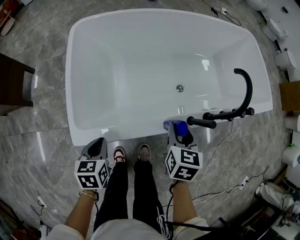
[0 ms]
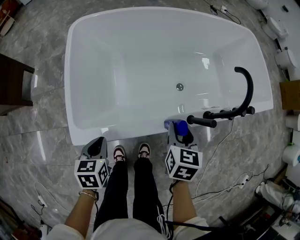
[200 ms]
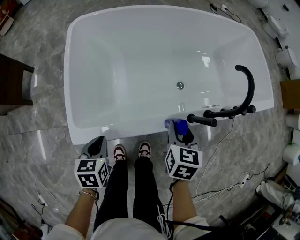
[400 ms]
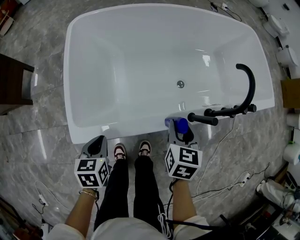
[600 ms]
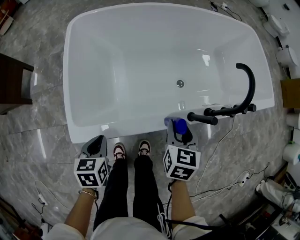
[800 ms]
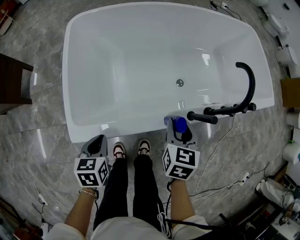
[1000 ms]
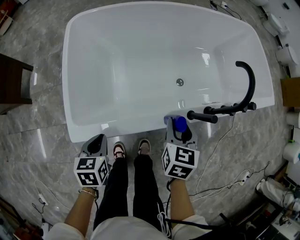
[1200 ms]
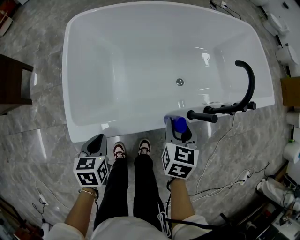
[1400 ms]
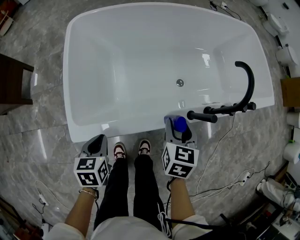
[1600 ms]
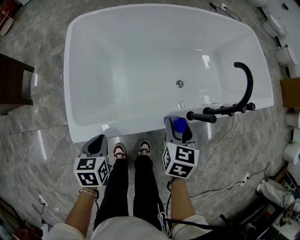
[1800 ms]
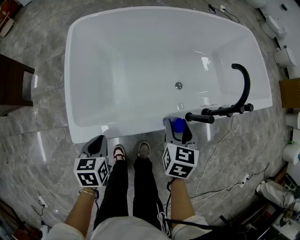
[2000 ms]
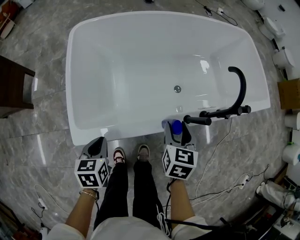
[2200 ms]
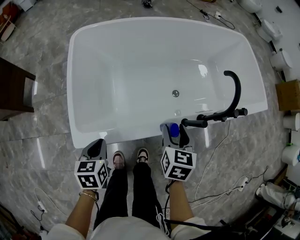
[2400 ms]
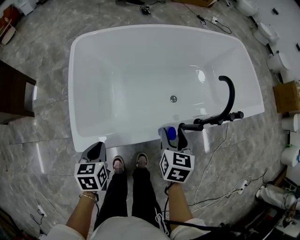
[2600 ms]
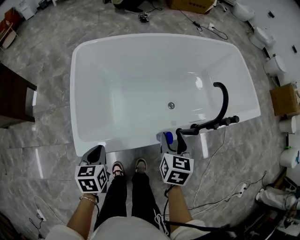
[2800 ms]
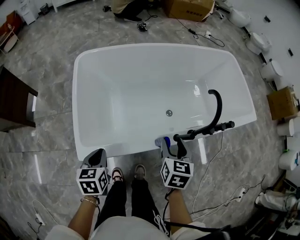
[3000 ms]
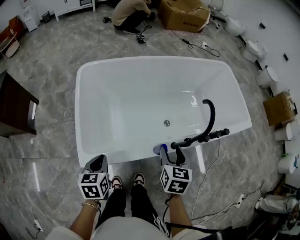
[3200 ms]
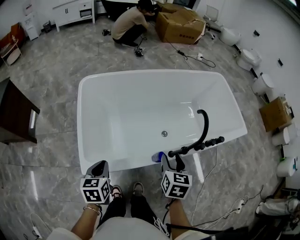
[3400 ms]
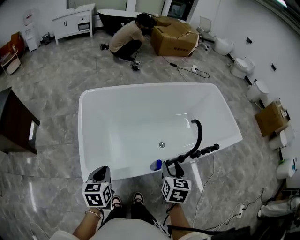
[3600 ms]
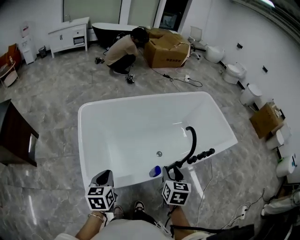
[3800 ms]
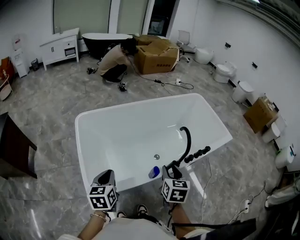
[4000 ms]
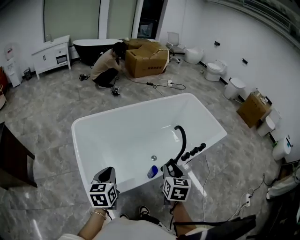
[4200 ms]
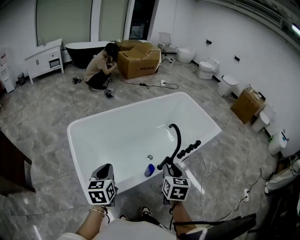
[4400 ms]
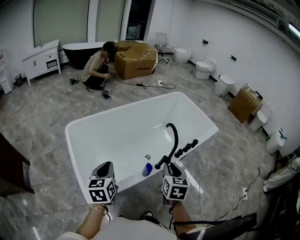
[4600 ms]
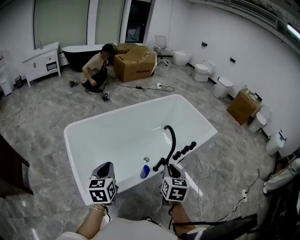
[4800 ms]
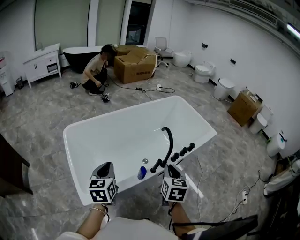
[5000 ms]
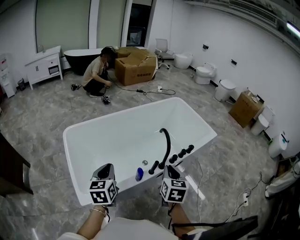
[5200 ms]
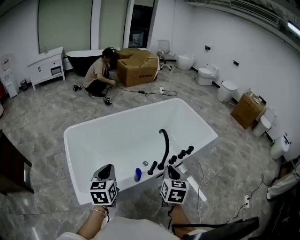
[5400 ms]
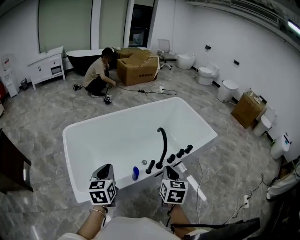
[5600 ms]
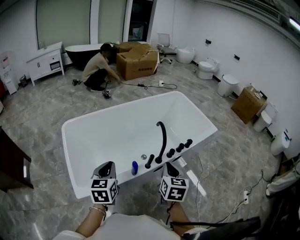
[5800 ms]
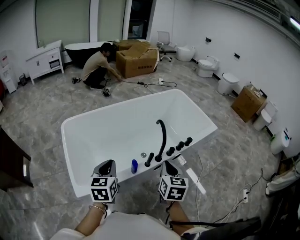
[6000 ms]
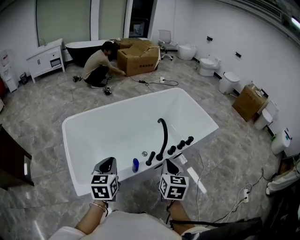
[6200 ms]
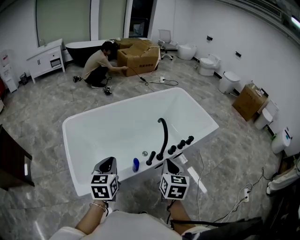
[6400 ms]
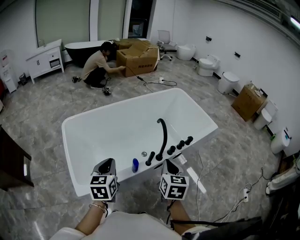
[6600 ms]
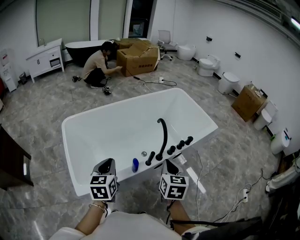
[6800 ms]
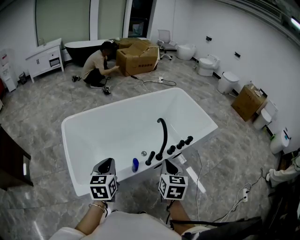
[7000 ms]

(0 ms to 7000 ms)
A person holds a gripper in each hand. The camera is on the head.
0 ms - 1400 ms: Both grippers stay about where they are.
1400 ms - 2800 ms: The grippers both shift upward by approximately 5 cm.
2800 ms - 4200 ms: The left gripper heads upward and forward, covering roughly 20 cm, and turns by approximately 20 degrees, while the right gripper goes some 15 cm upward, and closes up.
4200 ms - 5600 ms: The grippers both shift to the right by some 10 cm. The right gripper closes up.
5600 ms - 7000 ms: There are only small adjustments of the grippers.

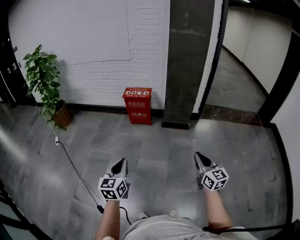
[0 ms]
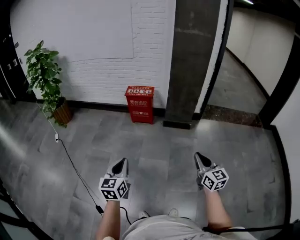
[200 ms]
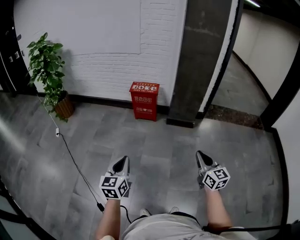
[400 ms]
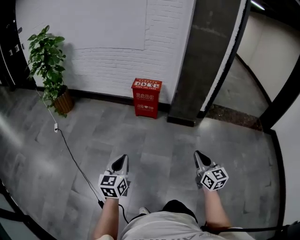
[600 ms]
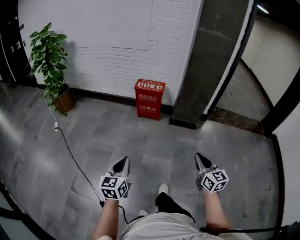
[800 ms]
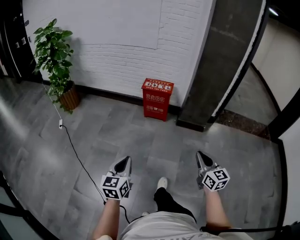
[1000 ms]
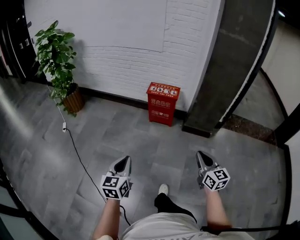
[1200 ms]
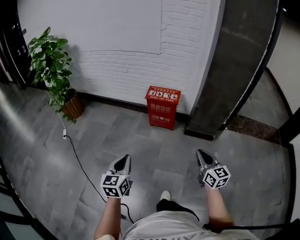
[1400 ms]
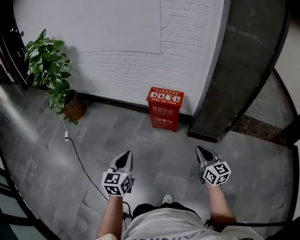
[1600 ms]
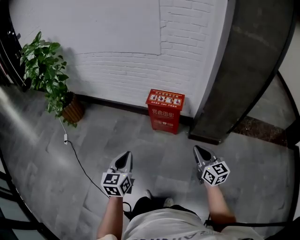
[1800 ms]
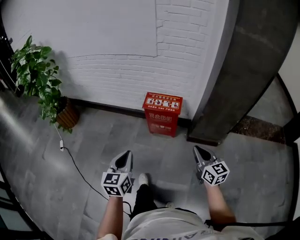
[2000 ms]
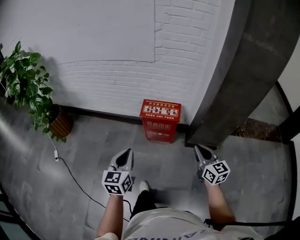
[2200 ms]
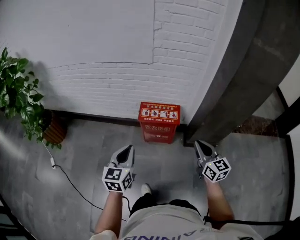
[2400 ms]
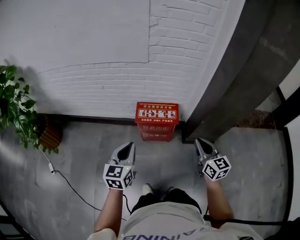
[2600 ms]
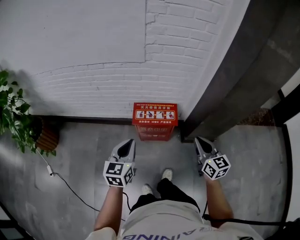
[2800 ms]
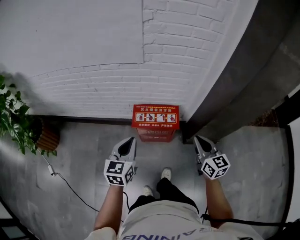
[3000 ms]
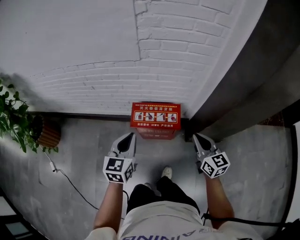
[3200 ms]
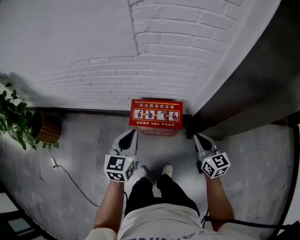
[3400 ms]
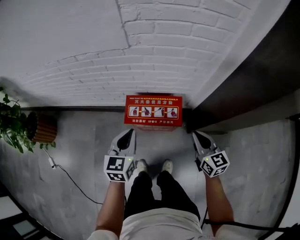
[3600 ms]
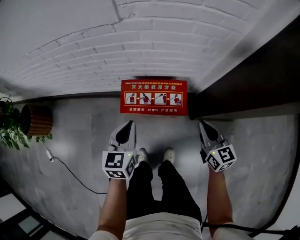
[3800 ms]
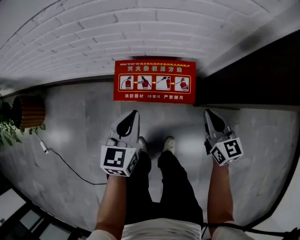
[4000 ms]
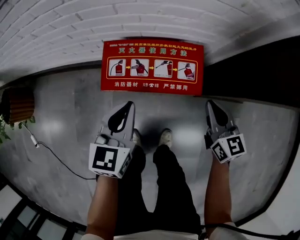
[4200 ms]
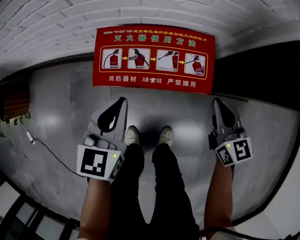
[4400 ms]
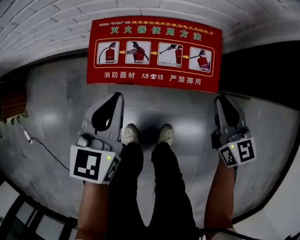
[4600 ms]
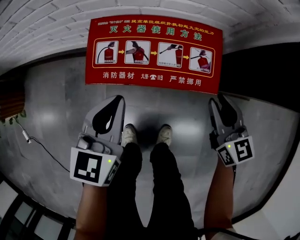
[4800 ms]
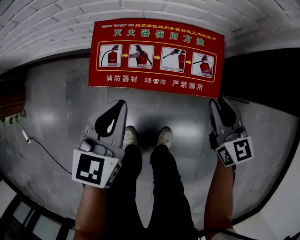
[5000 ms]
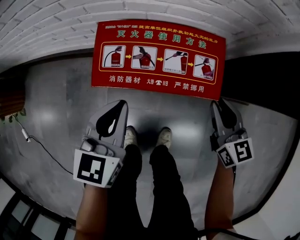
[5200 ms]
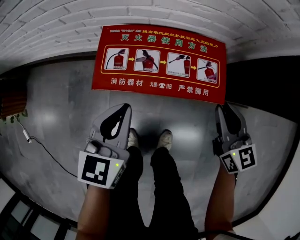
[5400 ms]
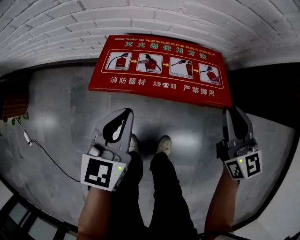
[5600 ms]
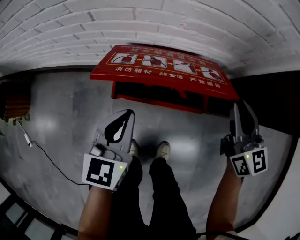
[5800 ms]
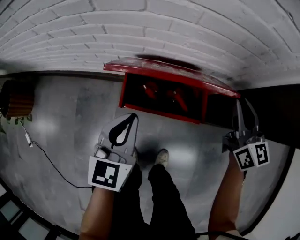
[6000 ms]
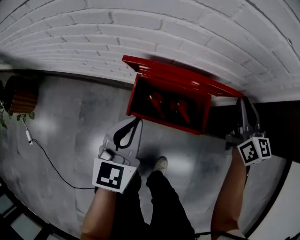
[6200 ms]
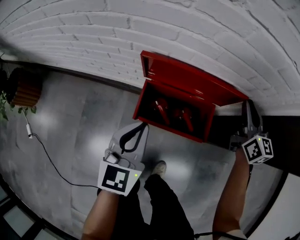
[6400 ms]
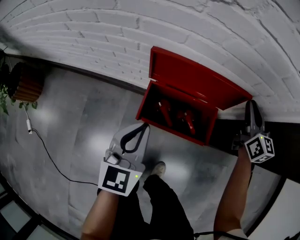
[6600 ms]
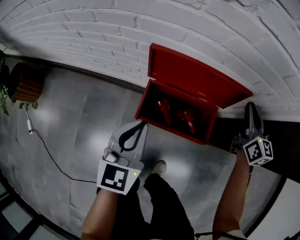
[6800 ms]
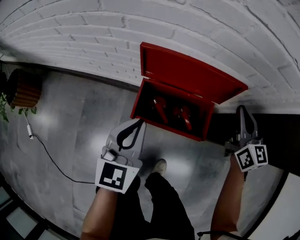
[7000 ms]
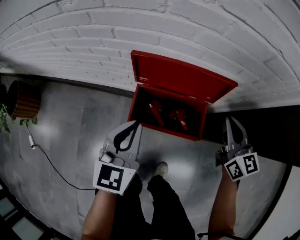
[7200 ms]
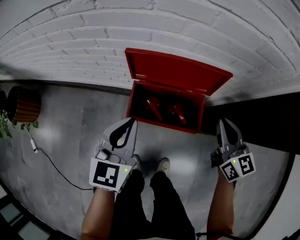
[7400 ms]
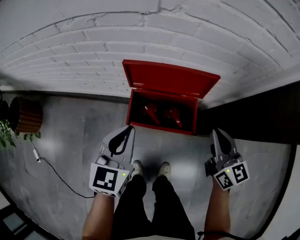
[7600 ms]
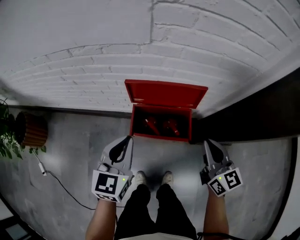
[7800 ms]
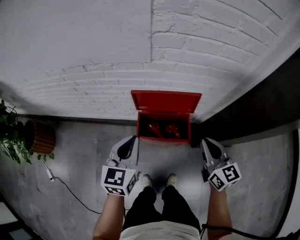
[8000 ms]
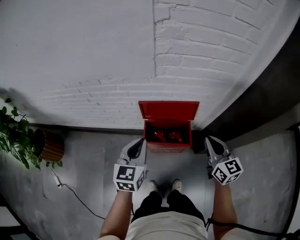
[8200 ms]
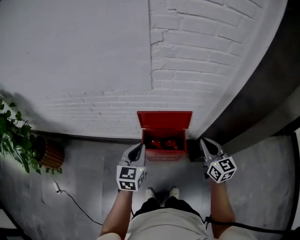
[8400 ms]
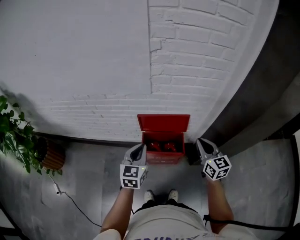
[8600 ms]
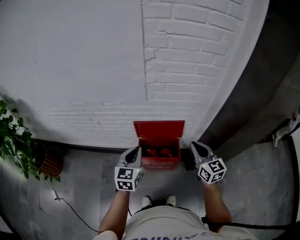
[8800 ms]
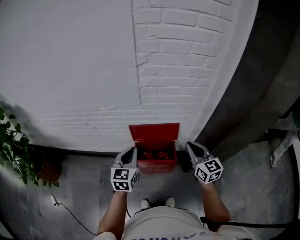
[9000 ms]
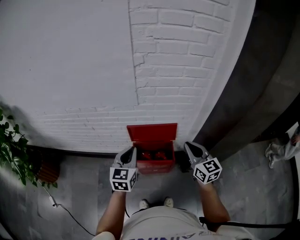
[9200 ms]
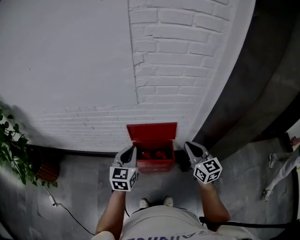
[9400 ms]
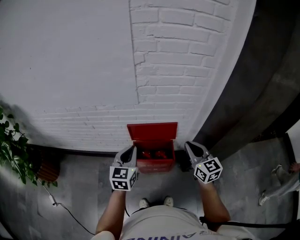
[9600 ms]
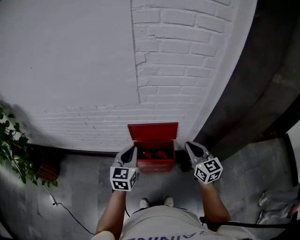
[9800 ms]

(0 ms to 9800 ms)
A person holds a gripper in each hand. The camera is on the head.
0 ms - 1400 ms: The two grippers go approximately 35 cm forward and to the left.
1400 ms - 2800 ms: The pair of grippers is taken forward, roughly 50 cm.
2800 ms - 4200 ms: The two grippers go roughly 35 cm downward and forward.
4200 ms - 5600 ms: The right gripper goes downward and returns, roughly 5 cm each way.
5600 ms - 7000 ms: The left gripper heads upward and forward, covering roughly 15 cm; the right gripper goes roughly 20 cm forward and upward.
7000 ms - 8400 ms: The right gripper shifts approximately 25 cm upward and backward, while the left gripper moves upward, some 20 cm.
8400 ms - 9800 ms: The left gripper shifts by about 5 cm.

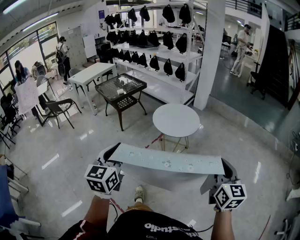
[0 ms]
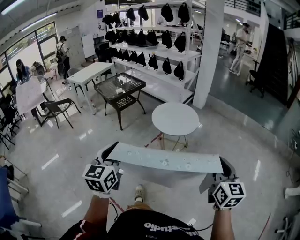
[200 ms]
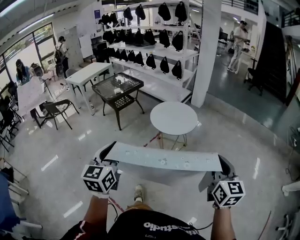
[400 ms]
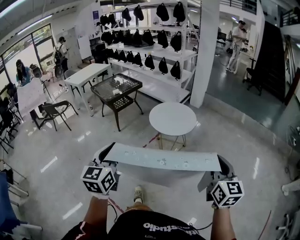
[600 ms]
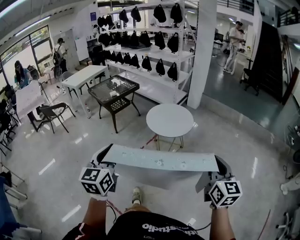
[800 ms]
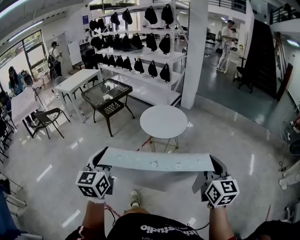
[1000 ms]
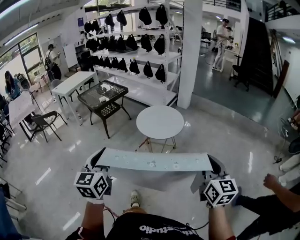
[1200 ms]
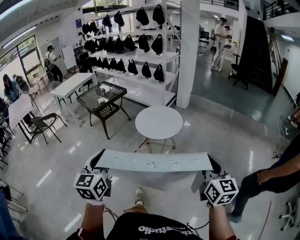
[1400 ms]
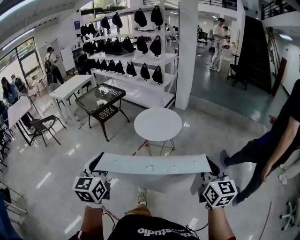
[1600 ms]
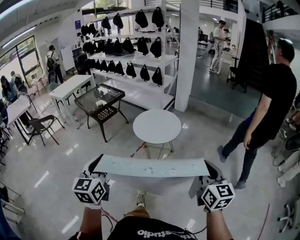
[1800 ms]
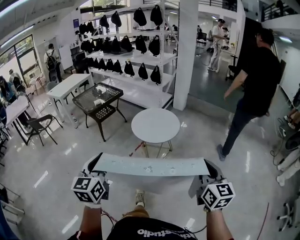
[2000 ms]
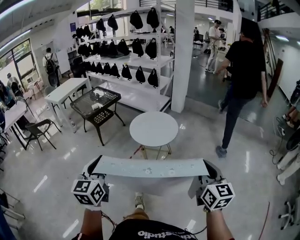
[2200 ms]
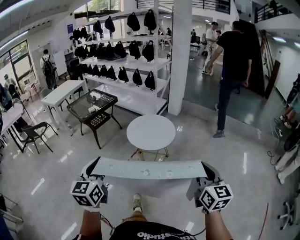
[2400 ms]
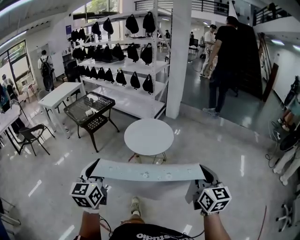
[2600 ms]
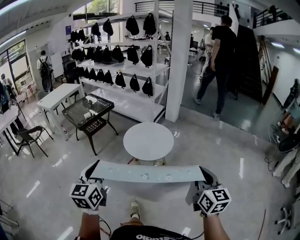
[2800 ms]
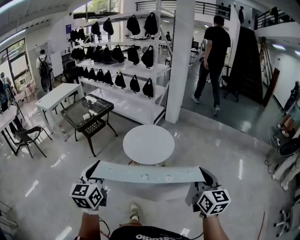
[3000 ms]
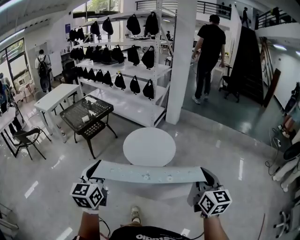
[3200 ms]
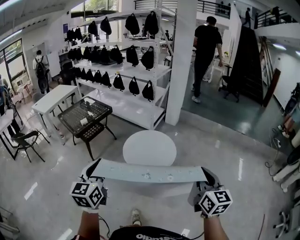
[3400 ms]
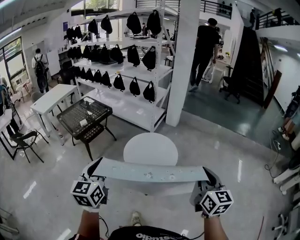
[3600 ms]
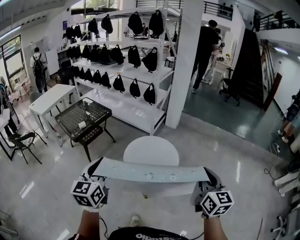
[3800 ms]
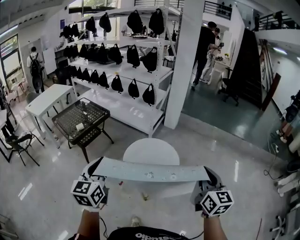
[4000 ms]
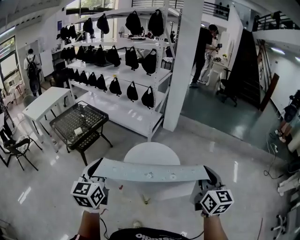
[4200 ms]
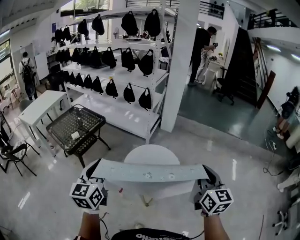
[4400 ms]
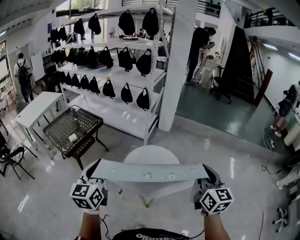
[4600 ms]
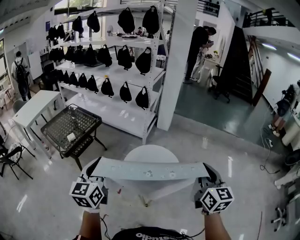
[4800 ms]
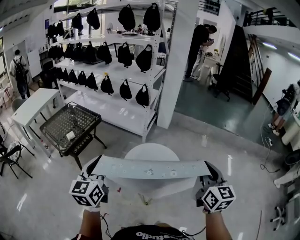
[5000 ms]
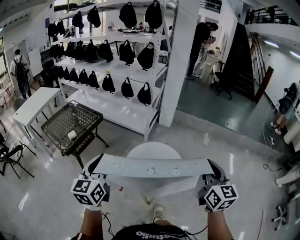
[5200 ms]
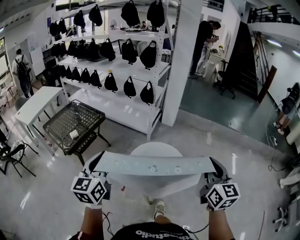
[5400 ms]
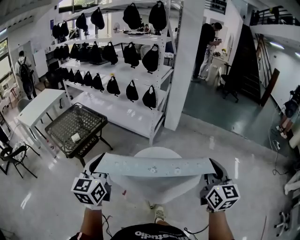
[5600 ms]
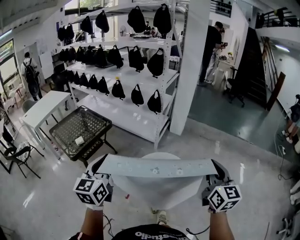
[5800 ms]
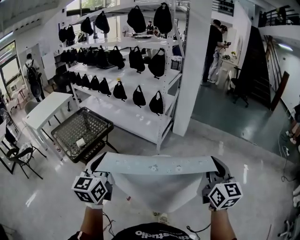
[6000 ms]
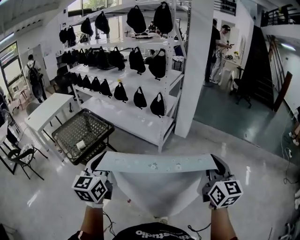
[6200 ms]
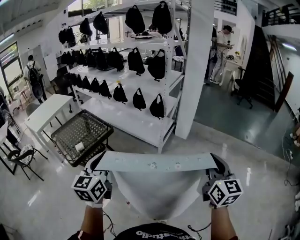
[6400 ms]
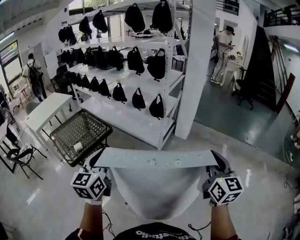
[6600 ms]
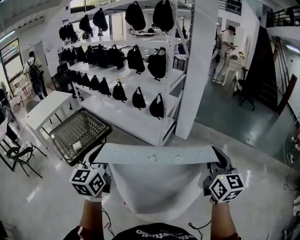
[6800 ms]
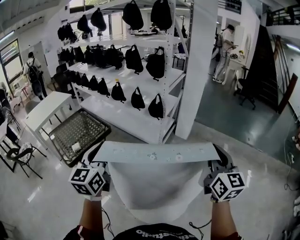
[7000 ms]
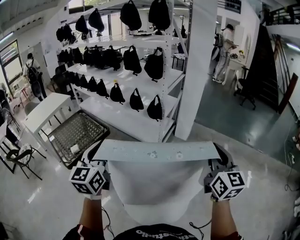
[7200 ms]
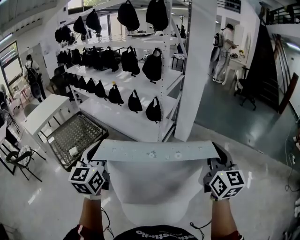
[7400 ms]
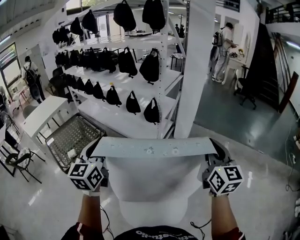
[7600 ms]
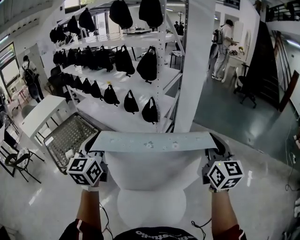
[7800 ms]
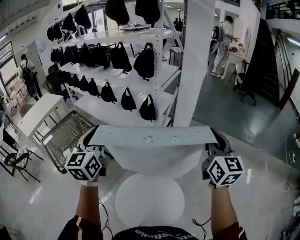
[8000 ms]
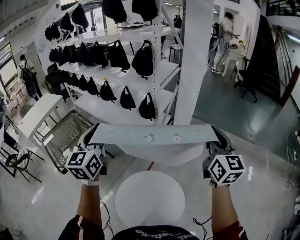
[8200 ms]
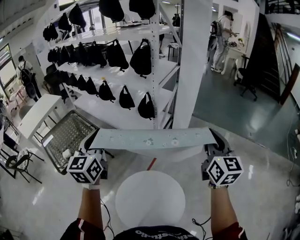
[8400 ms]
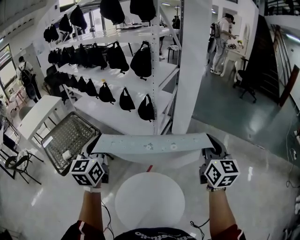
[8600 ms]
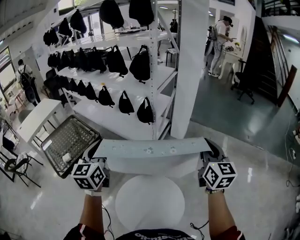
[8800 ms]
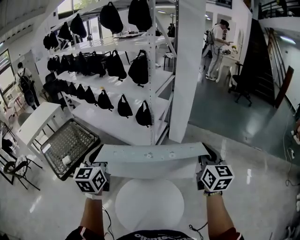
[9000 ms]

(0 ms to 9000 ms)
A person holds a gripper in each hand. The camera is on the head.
0 ms - 1600 ms: The grippers make only small movements.
1600 ms - 3000 ms: The grippers both shift forward by about 15 cm.
3000 ms - 4400 ms: Both grippers move forward, approximately 30 cm.
4400 ms - 6000 ms: Both grippers travel together forward, approximately 15 cm.
6000 ms - 7600 ms: The two grippers go some 25 cm forward.
7600 ms - 9000 ms: The left gripper moves some 5 cm. Meanwhile the right gripper moves downward, some 5 cm.
